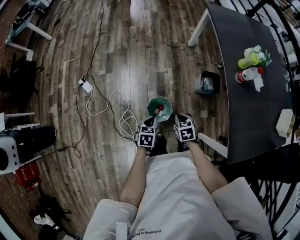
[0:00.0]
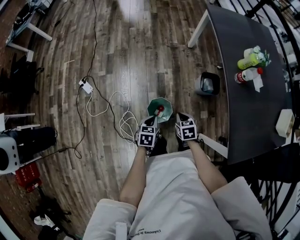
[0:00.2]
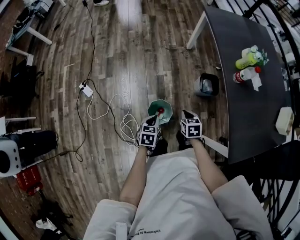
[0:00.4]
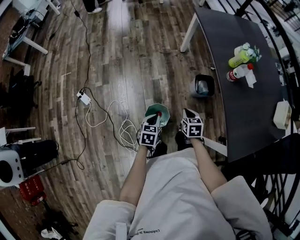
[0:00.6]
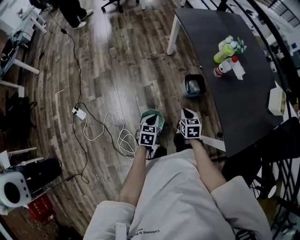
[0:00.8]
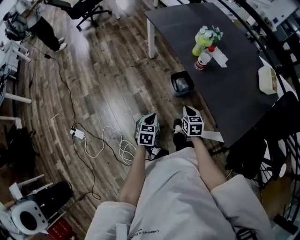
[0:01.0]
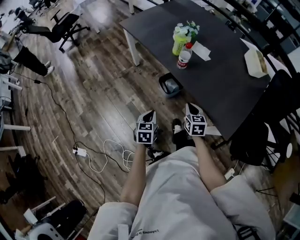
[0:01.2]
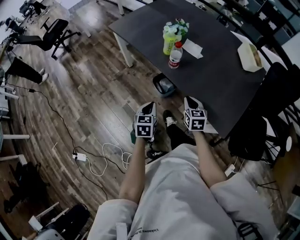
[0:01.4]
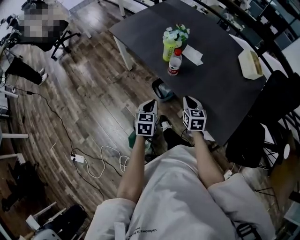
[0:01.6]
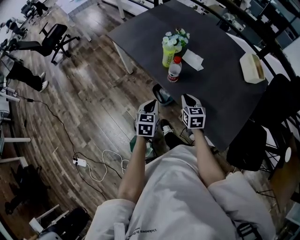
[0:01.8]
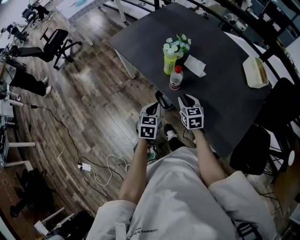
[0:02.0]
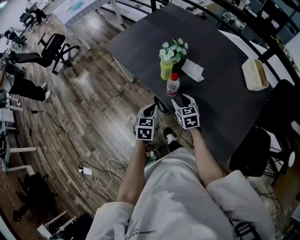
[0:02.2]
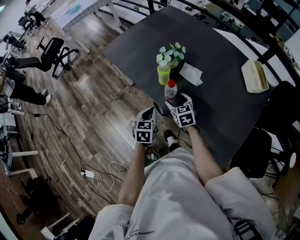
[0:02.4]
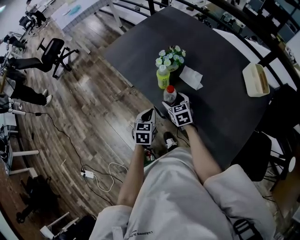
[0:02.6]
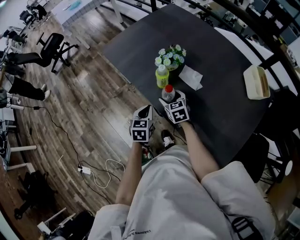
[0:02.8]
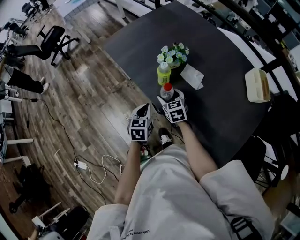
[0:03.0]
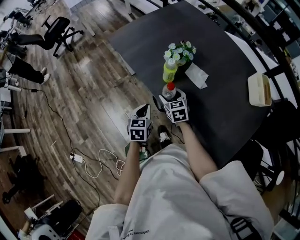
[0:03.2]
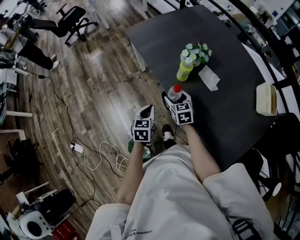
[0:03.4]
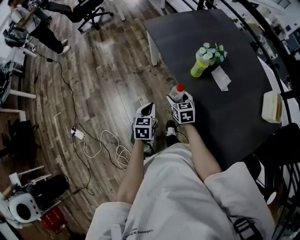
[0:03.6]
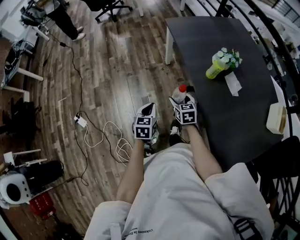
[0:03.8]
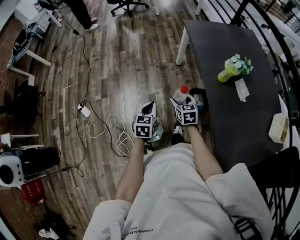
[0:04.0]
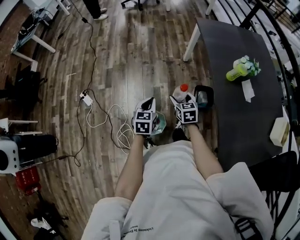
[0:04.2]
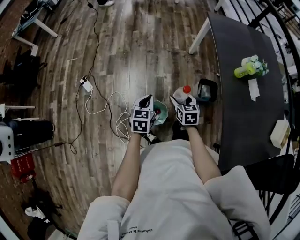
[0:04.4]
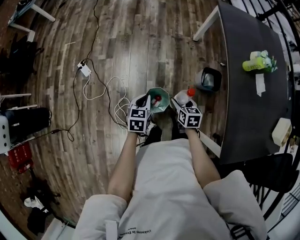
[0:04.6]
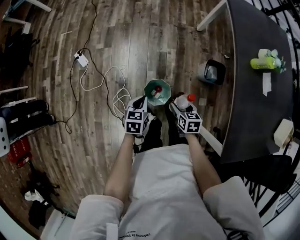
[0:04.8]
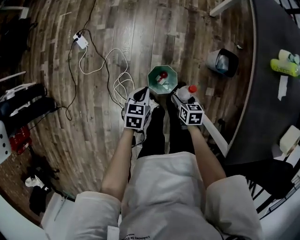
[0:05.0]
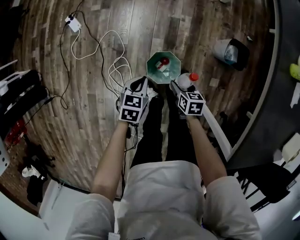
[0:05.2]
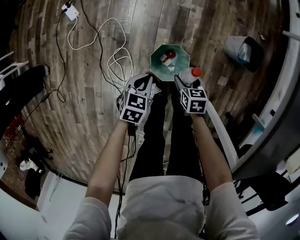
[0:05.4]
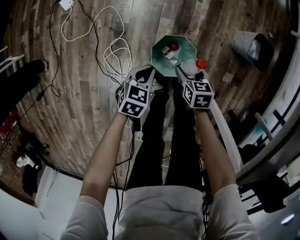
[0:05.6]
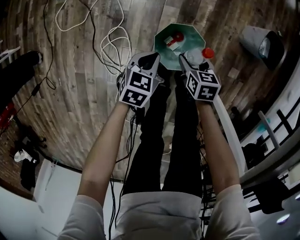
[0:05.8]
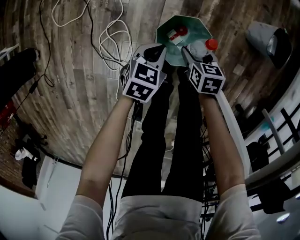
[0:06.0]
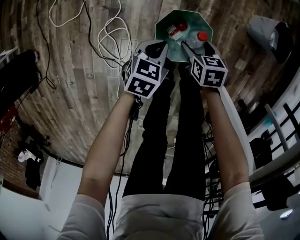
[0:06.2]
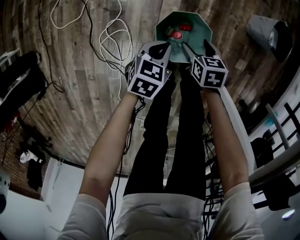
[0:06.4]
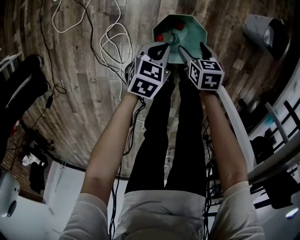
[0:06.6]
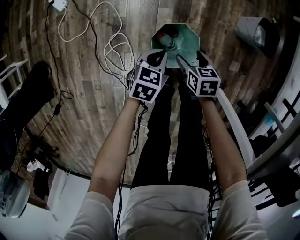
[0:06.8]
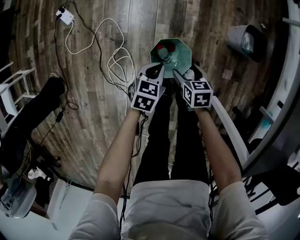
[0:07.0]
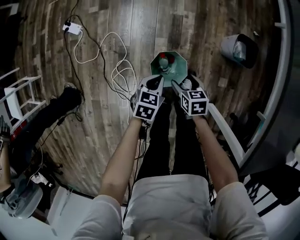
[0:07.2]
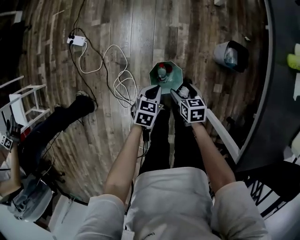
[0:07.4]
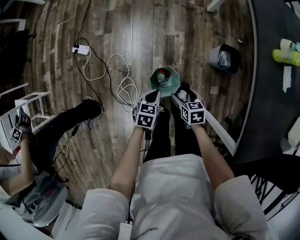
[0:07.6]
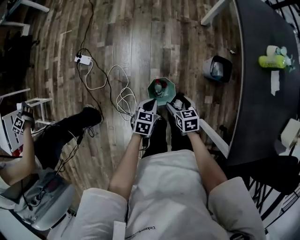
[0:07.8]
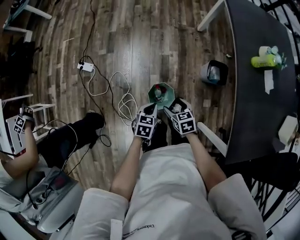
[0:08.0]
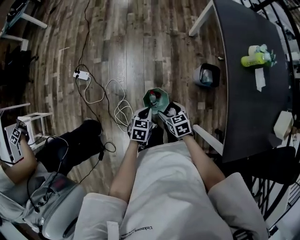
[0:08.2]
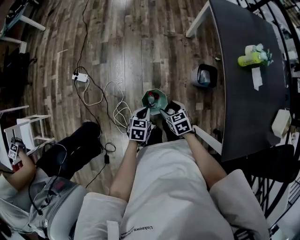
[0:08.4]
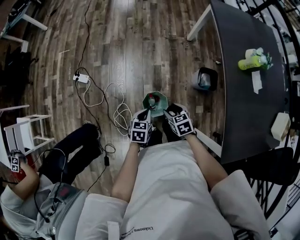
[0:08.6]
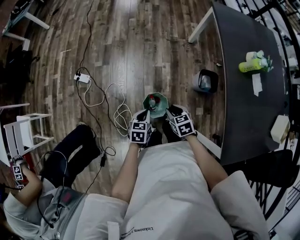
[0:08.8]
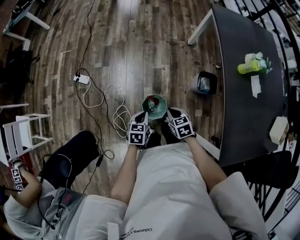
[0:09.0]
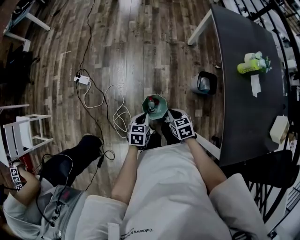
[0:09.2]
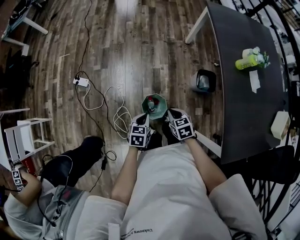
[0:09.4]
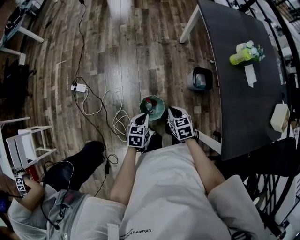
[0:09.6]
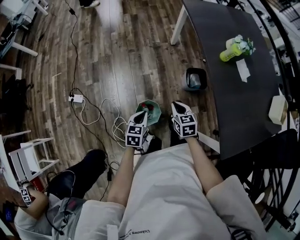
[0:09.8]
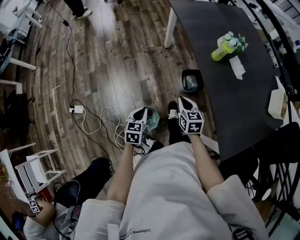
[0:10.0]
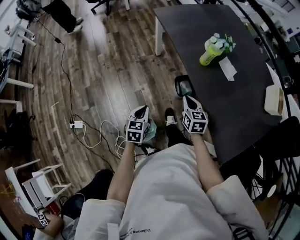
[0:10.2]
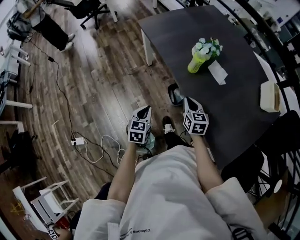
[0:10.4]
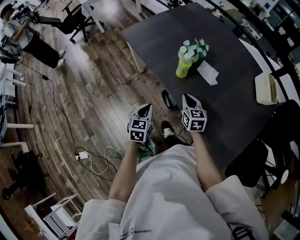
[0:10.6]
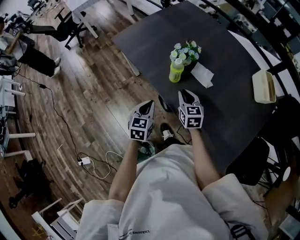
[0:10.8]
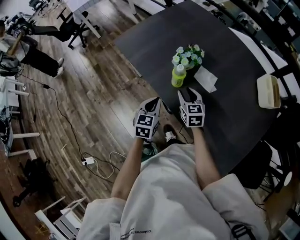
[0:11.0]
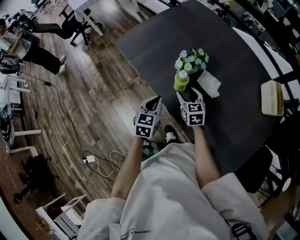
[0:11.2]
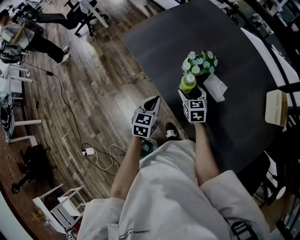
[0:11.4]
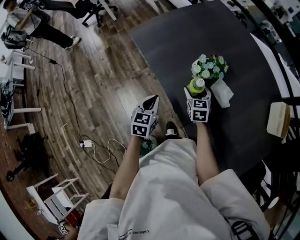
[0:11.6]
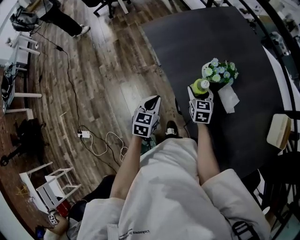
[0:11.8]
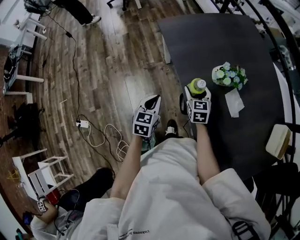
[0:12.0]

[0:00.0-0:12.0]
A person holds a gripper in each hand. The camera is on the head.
0:00.0 to 0:01.6: The left gripper changes place by about 35 cm, and rotates roughly 40 degrees, while the right gripper moves approximately 35 cm, and swivels roughly 50 degrees.
0:01.6 to 0:03.0: Both grippers travel together forward, some 20 cm. The right gripper opens up.
0:03.0 to 0:04.4: Both grippers are carried approximately 40 cm. The left gripper changes its angle by roughly 40 degrees. The right gripper changes its angle by about 30 degrees.
0:04.4 to 0:06.0: Both grippers move downward, roughly 50 cm. The left gripper rotates some 20 degrees. The right gripper turns by approximately 30 degrees.
0:06.0 to 0:07.6: Both grippers move upward, about 25 cm.
0:07.6 to 0:09.0: Both grippers travel together upward, some 10 cm. The right gripper closes.
0:09.0 to 0:10.4: The left gripper shifts by about 35 cm, and rotates some 40 degrees, while the right gripper ends up approximately 35 cm from where it was, and rotates some 60 degrees.
0:10.4 to 0:12.0: The grippers both shift forward by about 20 cm. The right gripper opens its fingers.

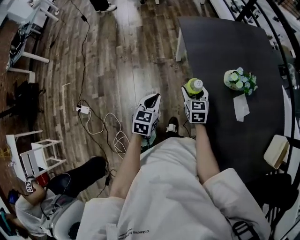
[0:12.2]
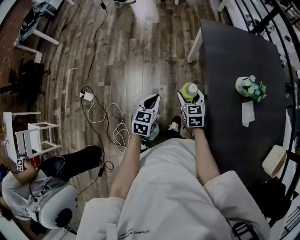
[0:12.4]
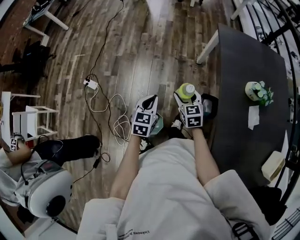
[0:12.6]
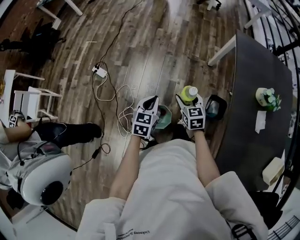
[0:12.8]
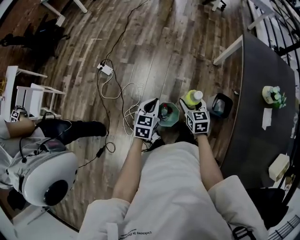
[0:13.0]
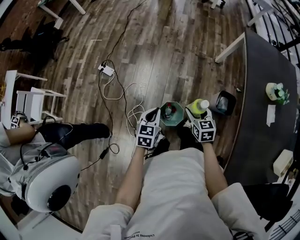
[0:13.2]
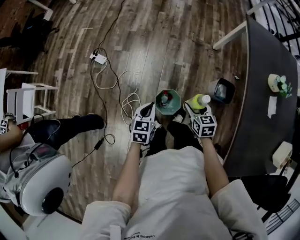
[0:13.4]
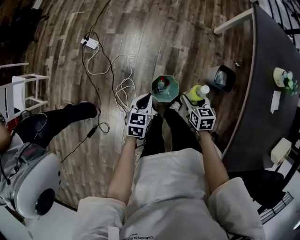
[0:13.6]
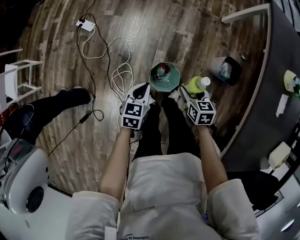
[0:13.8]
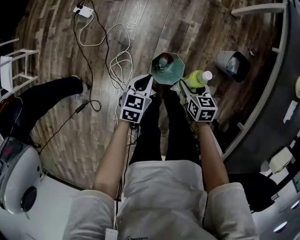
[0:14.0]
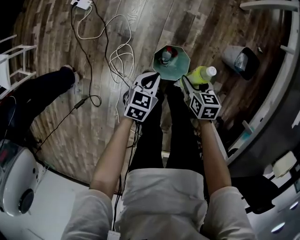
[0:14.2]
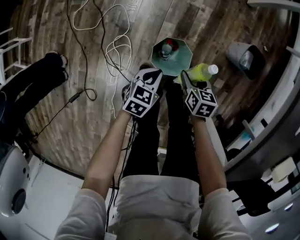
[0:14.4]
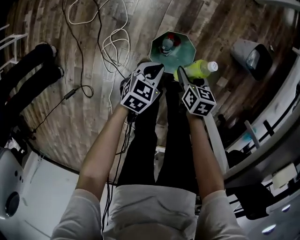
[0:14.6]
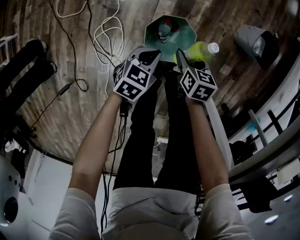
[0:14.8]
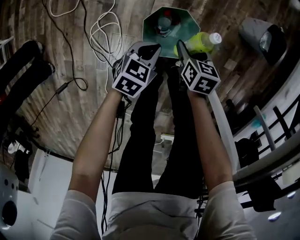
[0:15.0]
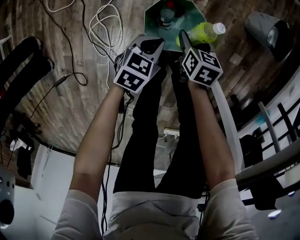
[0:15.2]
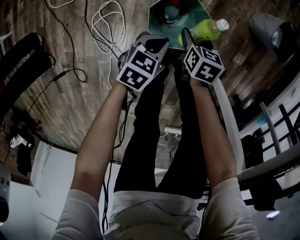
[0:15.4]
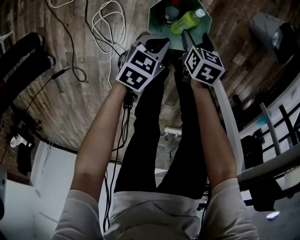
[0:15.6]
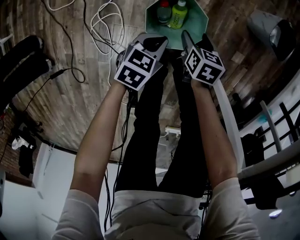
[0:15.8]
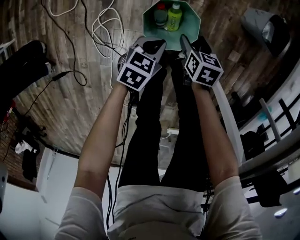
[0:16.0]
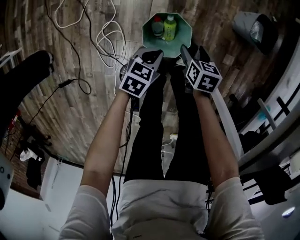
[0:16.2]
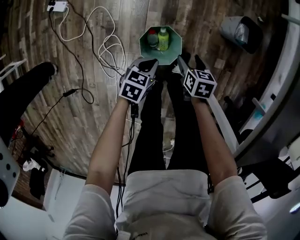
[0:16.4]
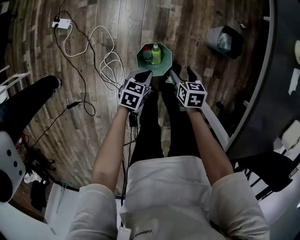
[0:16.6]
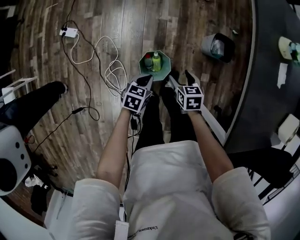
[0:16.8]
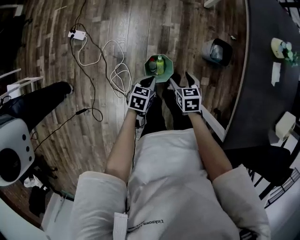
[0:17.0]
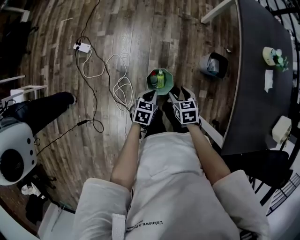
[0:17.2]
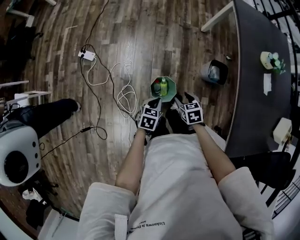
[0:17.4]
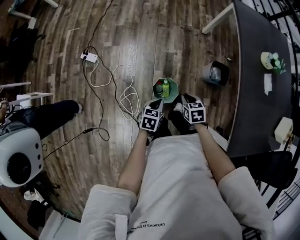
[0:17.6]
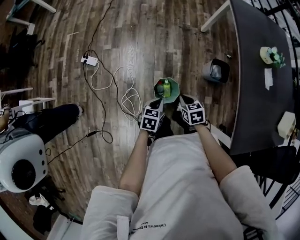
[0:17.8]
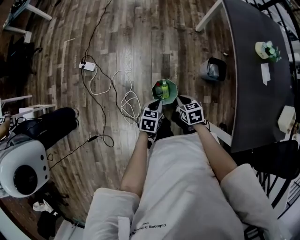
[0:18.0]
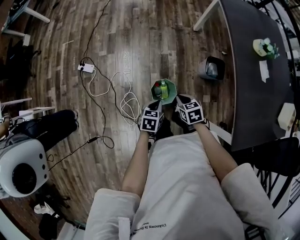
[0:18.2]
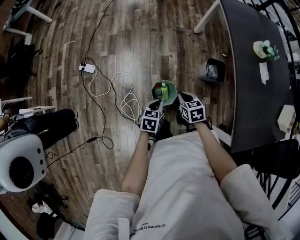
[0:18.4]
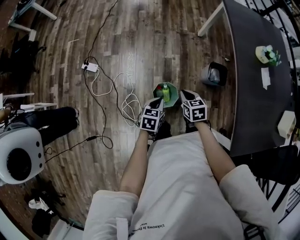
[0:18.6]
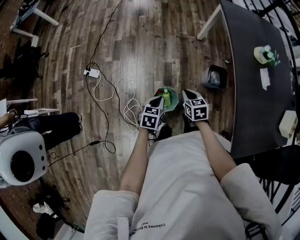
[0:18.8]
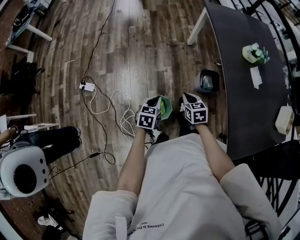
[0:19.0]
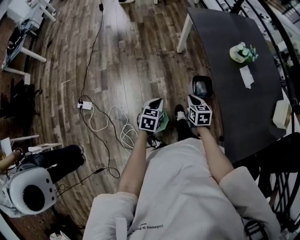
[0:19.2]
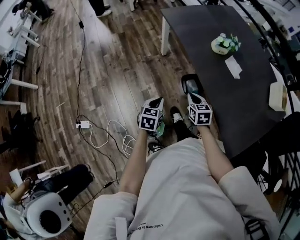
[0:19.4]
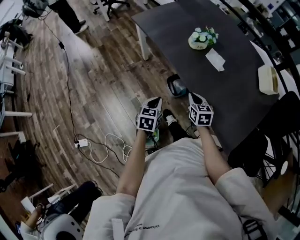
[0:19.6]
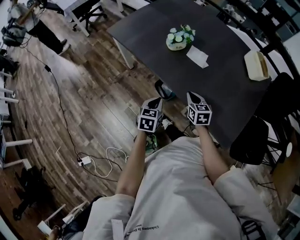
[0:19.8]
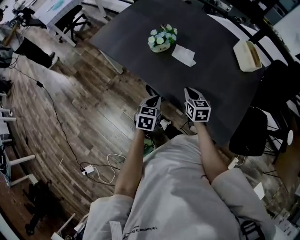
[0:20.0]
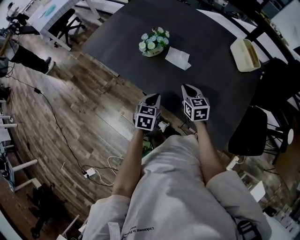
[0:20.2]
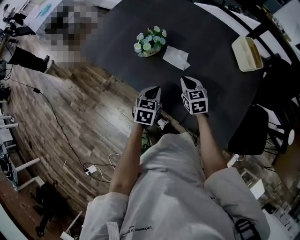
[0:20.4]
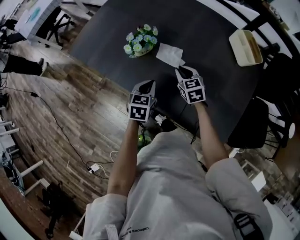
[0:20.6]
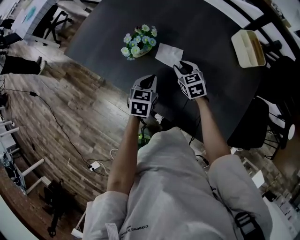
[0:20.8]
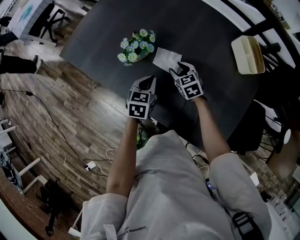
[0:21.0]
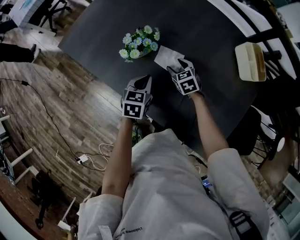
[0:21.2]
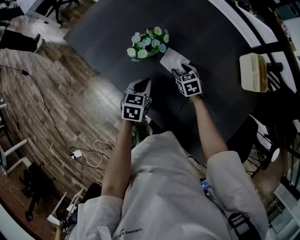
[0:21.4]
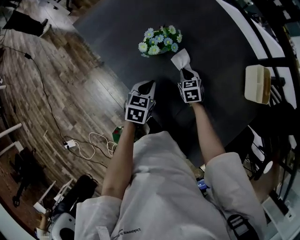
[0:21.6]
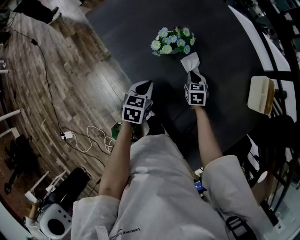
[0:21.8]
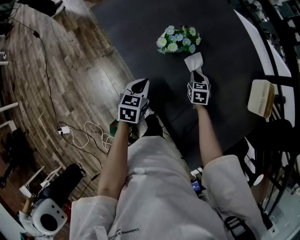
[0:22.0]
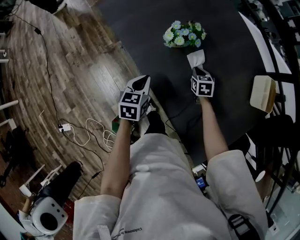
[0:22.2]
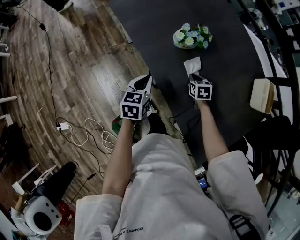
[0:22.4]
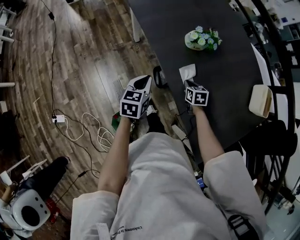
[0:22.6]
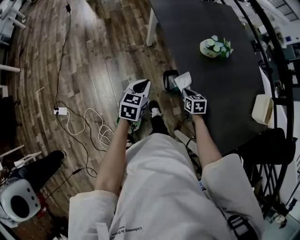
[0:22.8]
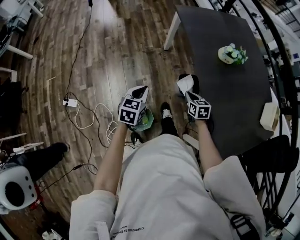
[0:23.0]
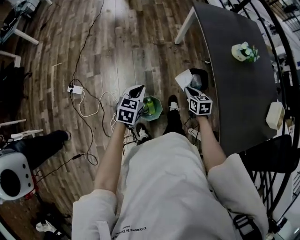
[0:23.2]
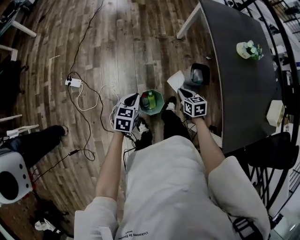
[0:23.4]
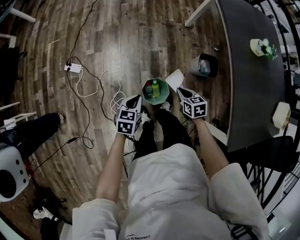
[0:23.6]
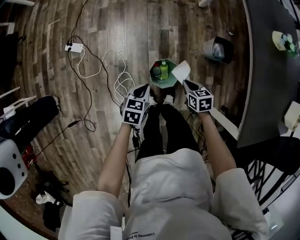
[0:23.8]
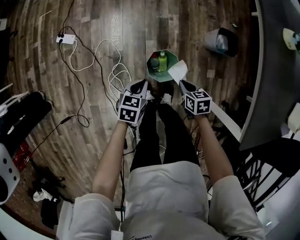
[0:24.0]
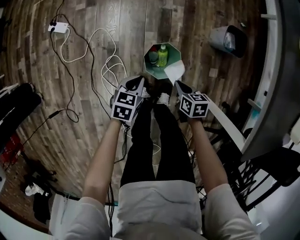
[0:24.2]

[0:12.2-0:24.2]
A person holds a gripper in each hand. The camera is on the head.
0:12.2 to 0:13.8: The right gripper moves some 50 cm, and swivels approximately 30 degrees. Meanwhile the left gripper moves approximately 50 cm, and turns by approximately 20 degrees.
0:13.8 to 0:15.2: Both grippers move downward, approximately 30 cm. The left gripper changes its angle by roughly 20 degrees.
0:15.2 to 0:16.6: The two grippers go approximately 20 cm upward.
0:16.6 to 0:18.2: Both grippers travel together upward, roughly 20 cm. The right gripper closes its fingers.
0:18.2 to 0:19.8: Both grippers are carried approximately 40 cm. The left gripper changes its angle by about 50 degrees. Meanwhile the right gripper turns by some 60 degrees.
0:19.8 to 0:21.2: The grippers both shift forward by some 25 cm. The right gripper turns by some 20 degrees, and opens its fingers.
0:21.2 to 0:22.6: The left gripper heads to the left and backward, covering approximately 25 cm, and rotates some 30 degrees; the right gripper heads backward and to the left, covering some 15 cm, and closes.
0:22.6 to 0:24.2: The two grippers travel together, some 50 cm. The right gripper turns by about 30 degrees. Meanwhile the left gripper changes its angle by roughly 30 degrees.
